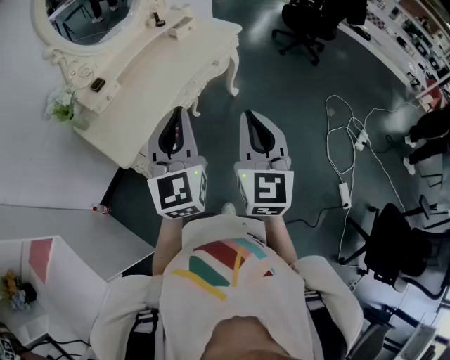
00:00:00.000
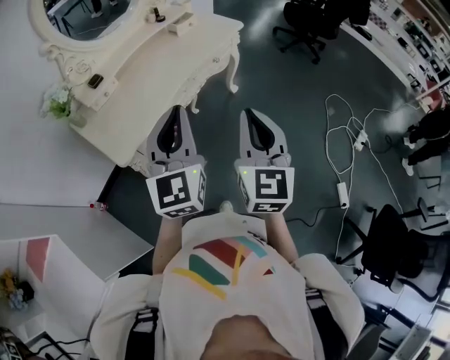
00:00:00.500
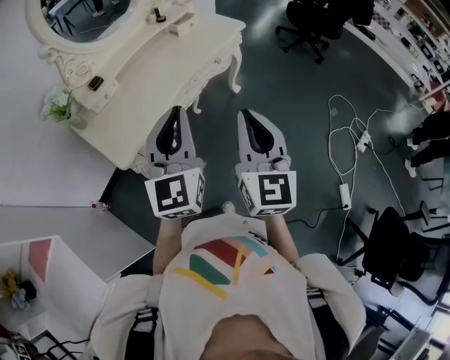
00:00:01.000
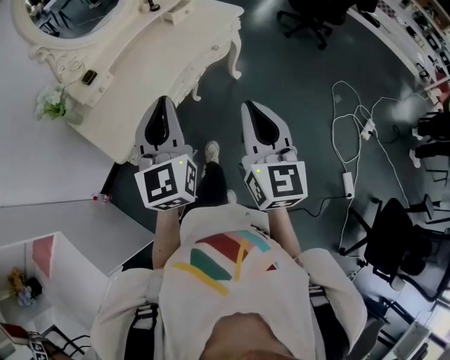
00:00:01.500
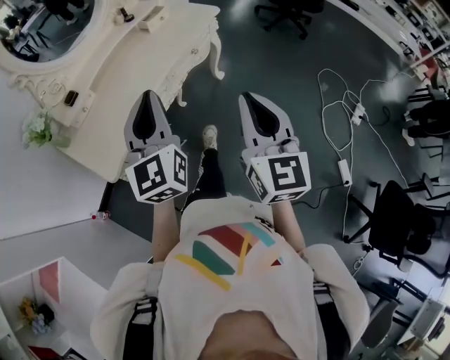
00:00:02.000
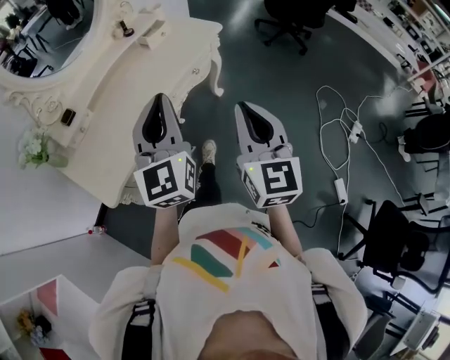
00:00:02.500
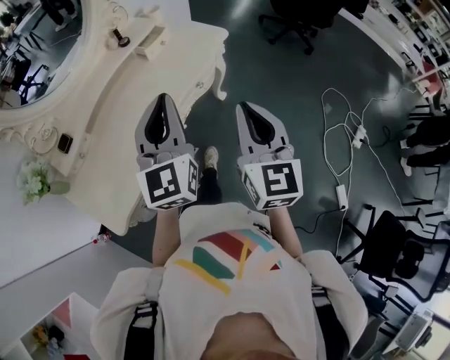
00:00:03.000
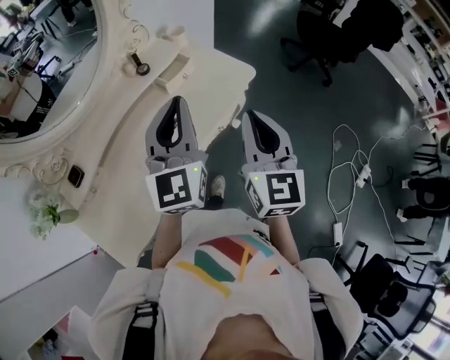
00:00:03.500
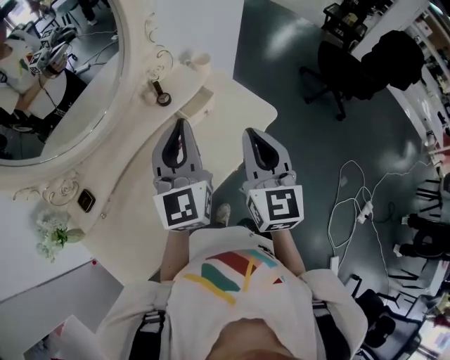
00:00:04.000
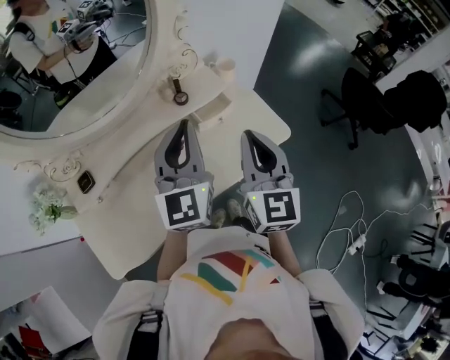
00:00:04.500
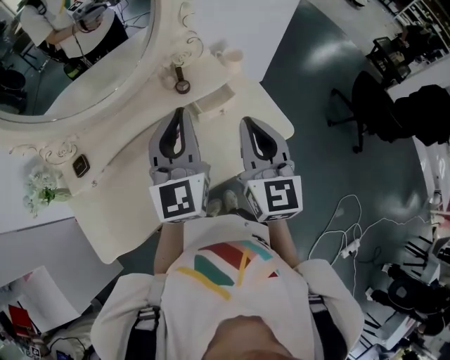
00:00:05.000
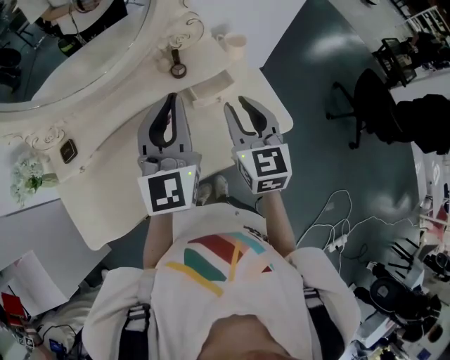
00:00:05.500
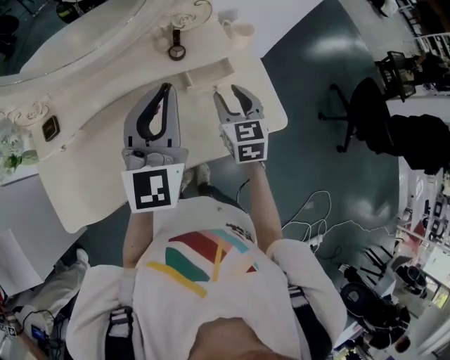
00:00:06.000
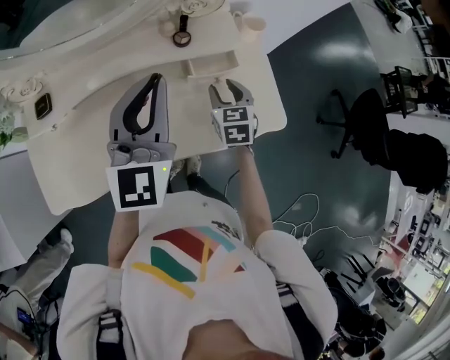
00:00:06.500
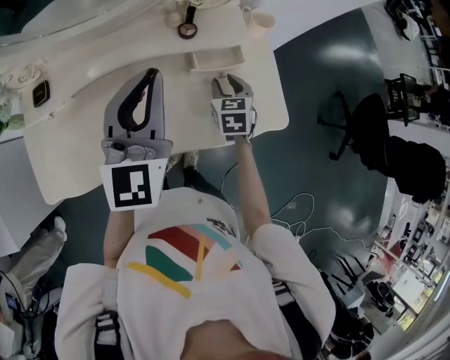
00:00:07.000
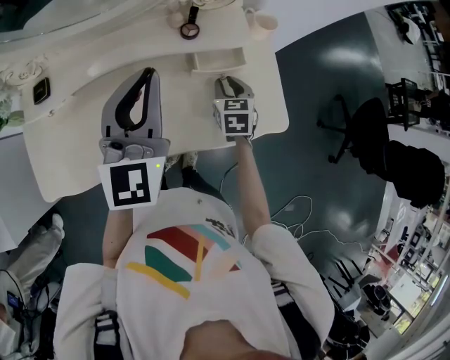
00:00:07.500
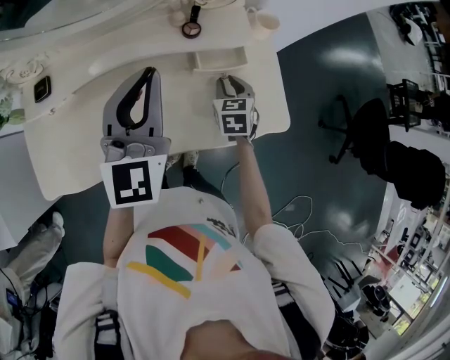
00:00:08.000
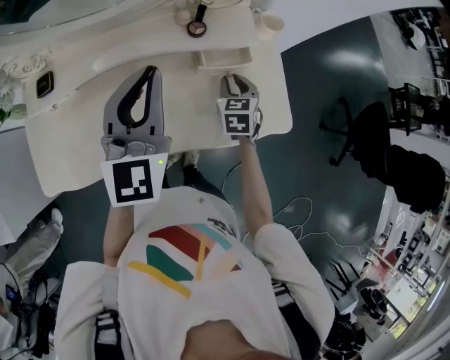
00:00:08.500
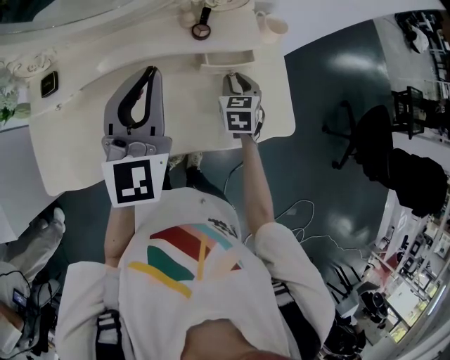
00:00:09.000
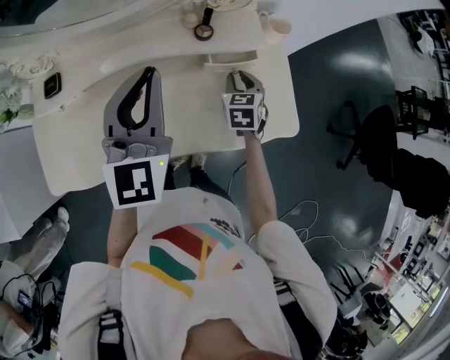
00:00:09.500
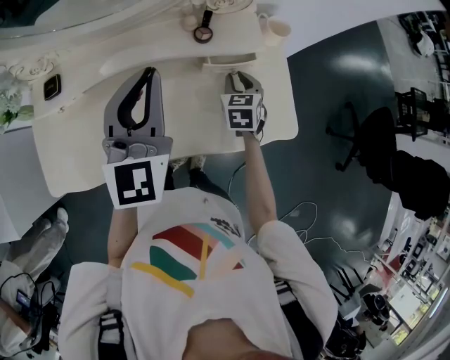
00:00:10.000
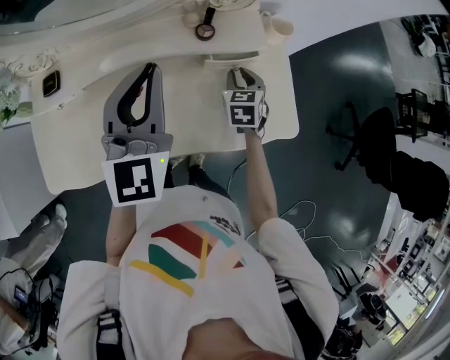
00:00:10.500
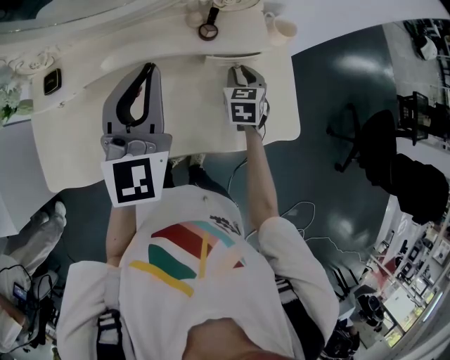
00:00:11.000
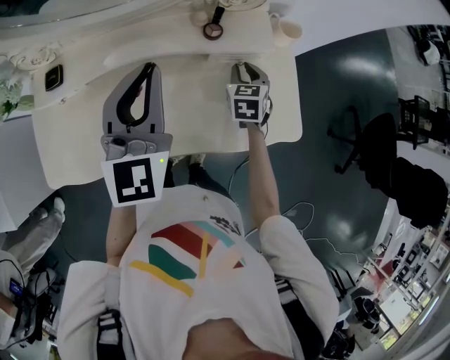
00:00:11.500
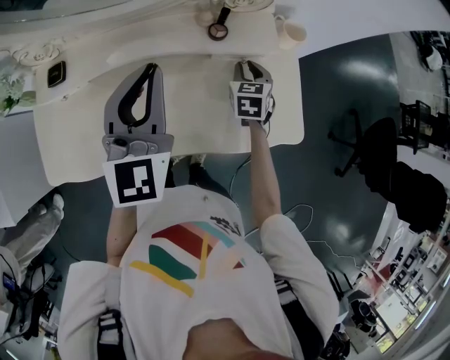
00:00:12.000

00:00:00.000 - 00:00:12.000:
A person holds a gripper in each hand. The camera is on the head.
00:00:00.000 - 00:00:02.000: The left gripper heads forward, covering some 10 cm. The right gripper goes approximately 5 cm forward.
00:00:02.000 - 00:00:04.000: Both grippers are carried forward, about 50 cm.
00:00:04.000 - 00:00:06.000: The left gripper heads forward, covering approximately 5 cm, while the right gripper goes roughly 25 cm downward and forward, changes its angle by roughly 40 degrees, and opens.
00:00:06.000 - 00:00:08.000: The right gripper heads downward, covering roughly 10 cm.
00:00:08.000 - 00:00:10.000: The grippers stay close to where they were, moving slightly.
00:00:10.000 - 00:00:12.000: The grippers stay close to where they were, moving slightly.

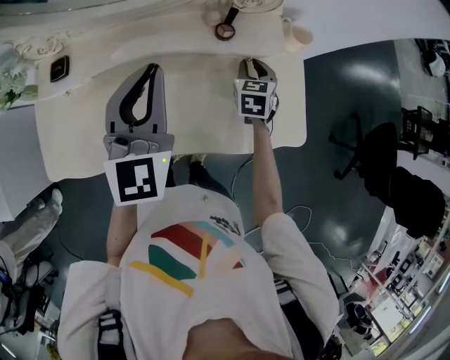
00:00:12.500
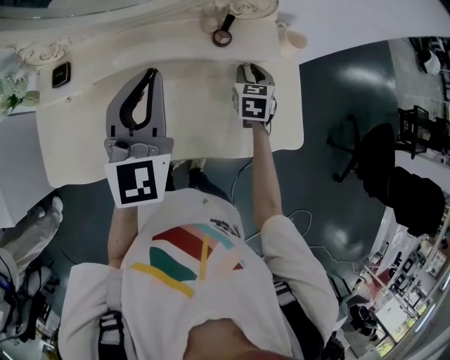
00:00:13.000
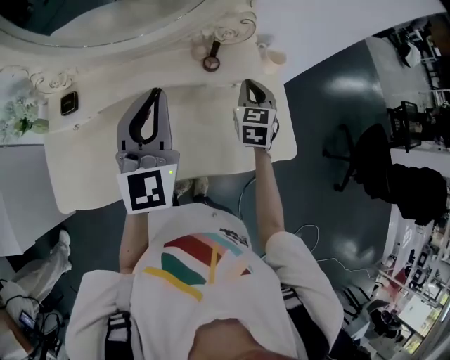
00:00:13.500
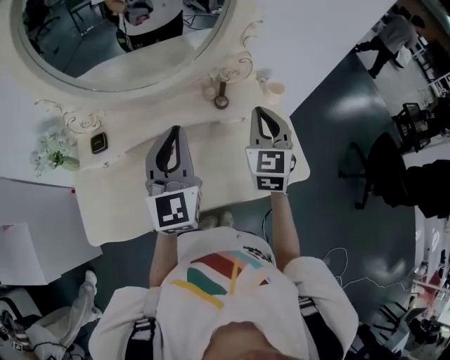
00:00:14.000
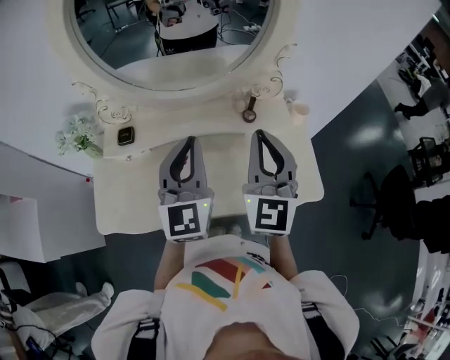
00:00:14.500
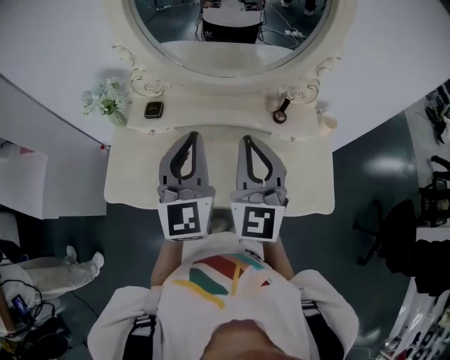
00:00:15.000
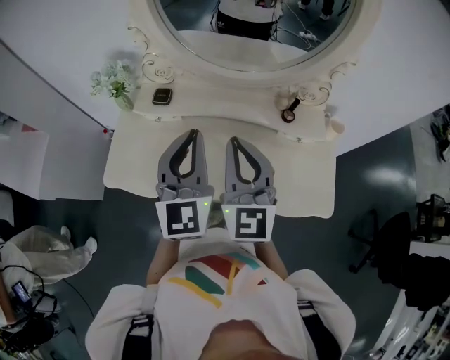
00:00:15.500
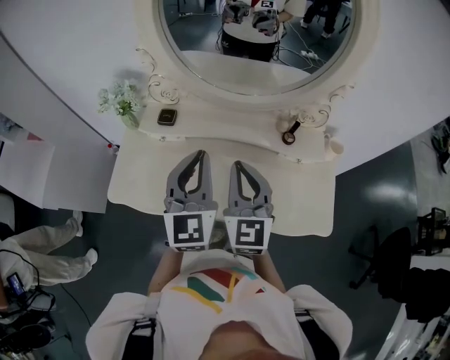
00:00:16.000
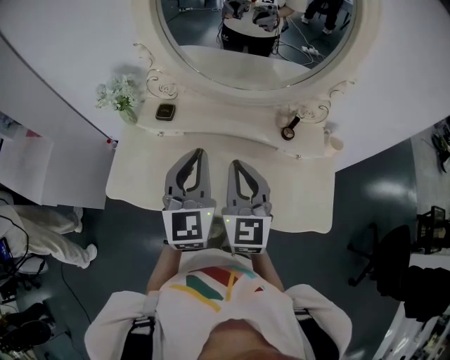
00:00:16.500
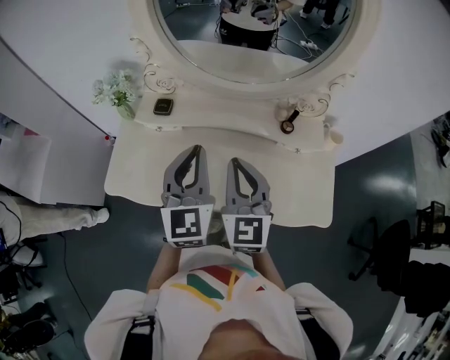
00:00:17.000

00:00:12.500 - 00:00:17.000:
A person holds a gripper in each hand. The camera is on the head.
00:00:12.500 - 00:00:14.500: The left gripper heads upward and backward, covering roughly 10 cm. Meanwhile the right gripper is displaced upward and backward by roughly 40 cm, and tips its fingers upward by about 40 degrees.
00:00:14.500 - 00:00:17.000: The right gripper goes some 15 cm to the left and downward, and swivels approximately 20 degrees. The left gripper moves to the left, some 10 cm.

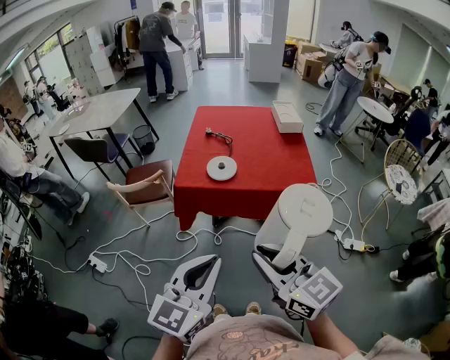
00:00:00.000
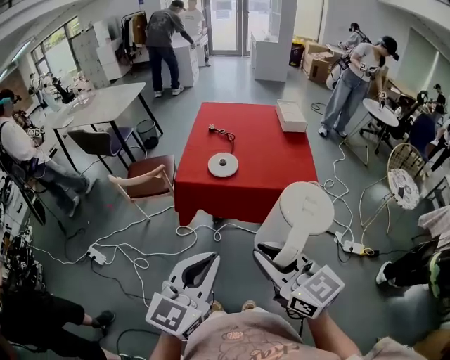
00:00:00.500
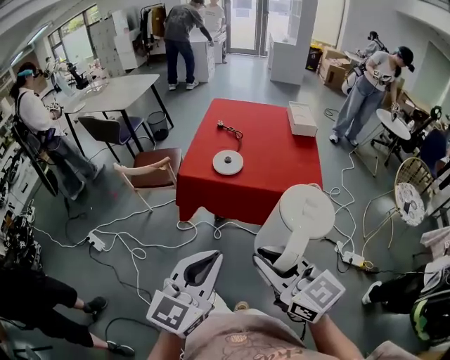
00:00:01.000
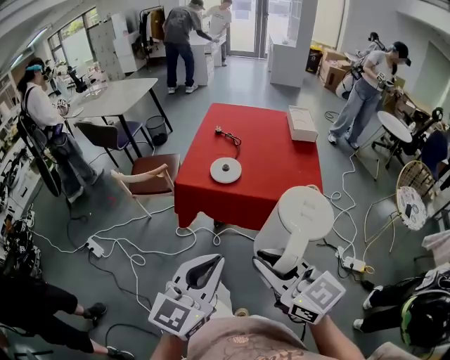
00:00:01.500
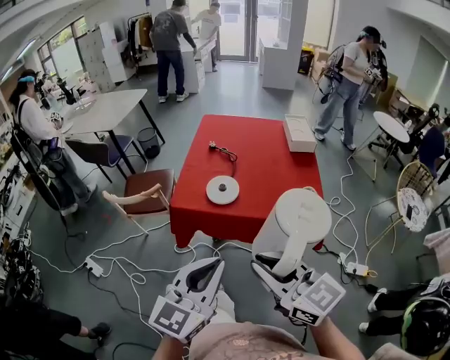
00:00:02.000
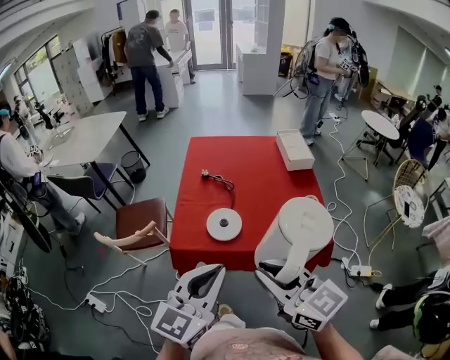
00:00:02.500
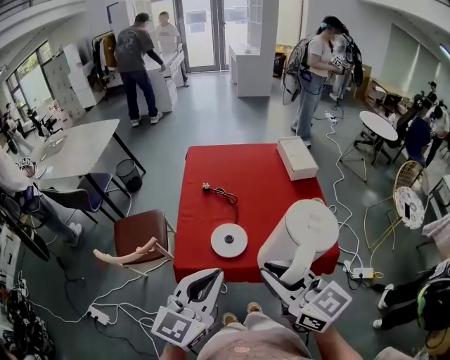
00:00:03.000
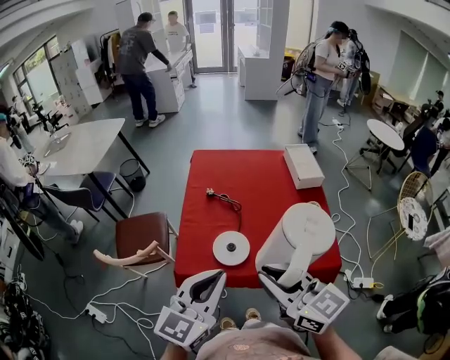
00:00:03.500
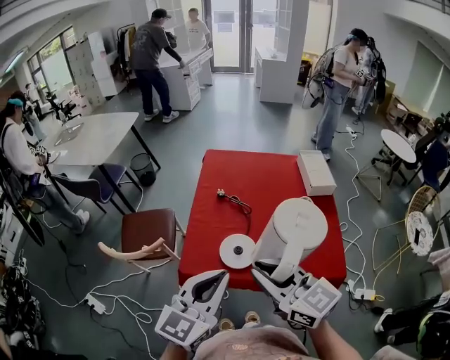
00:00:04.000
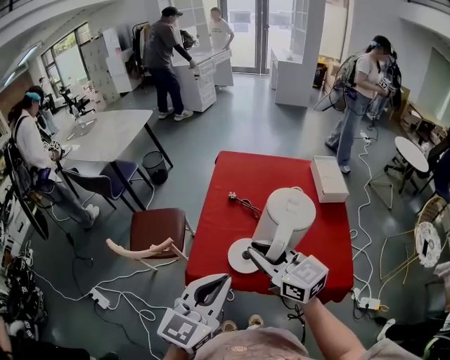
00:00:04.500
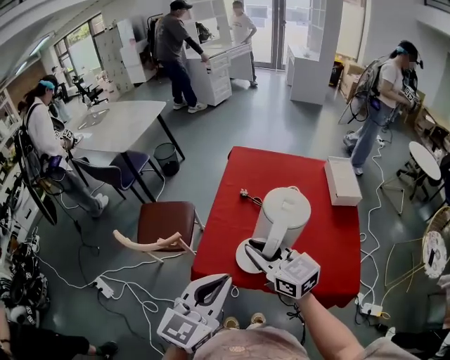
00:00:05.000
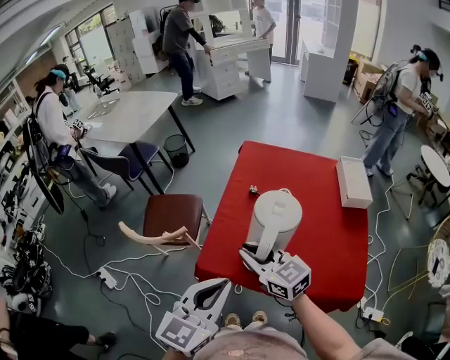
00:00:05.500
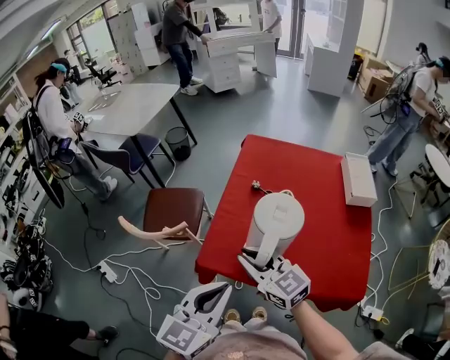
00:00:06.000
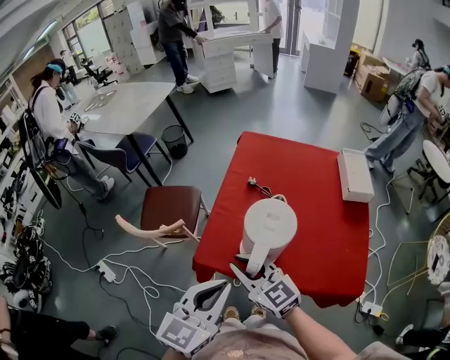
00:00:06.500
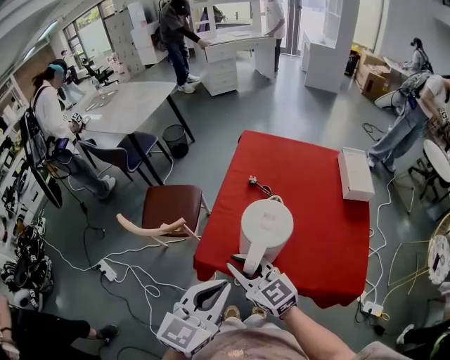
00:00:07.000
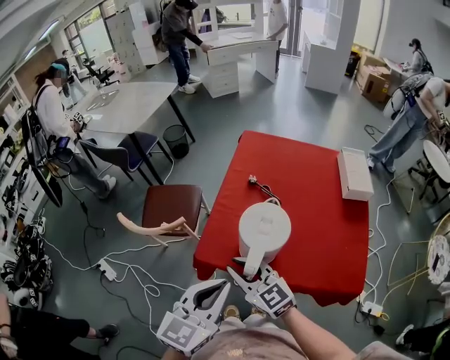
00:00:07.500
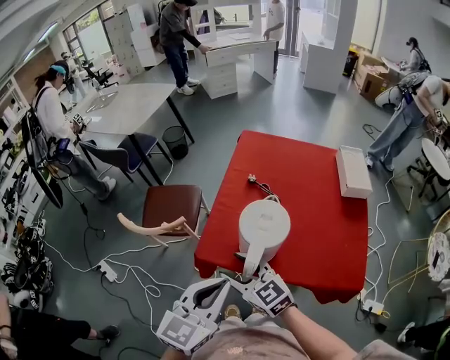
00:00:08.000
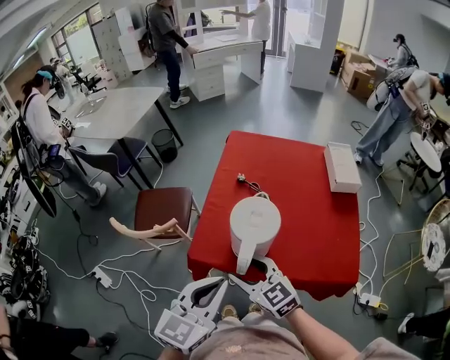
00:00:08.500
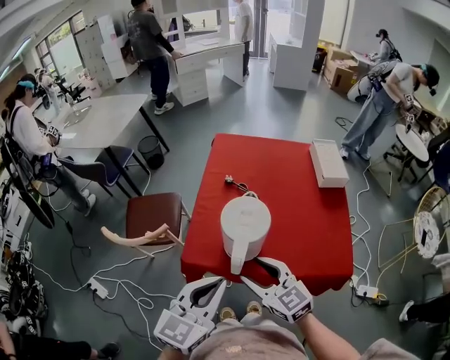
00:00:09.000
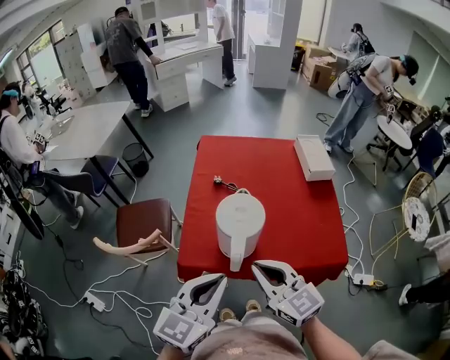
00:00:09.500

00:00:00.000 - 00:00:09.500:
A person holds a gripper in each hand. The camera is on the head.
00:00:00.000 - 00:00:02.000: Both grippers move forward, approximately 10 cm.
00:00:02.000 - 00:00:04.000: Both grippers move forward, approximately 25 cm.
00:00:04.000 - 00:00:05.500: The left gripper moves approximately 5 cm; the right gripper moves forward, downward and to the left, about 20 cm.
00:00:05.500 - 00:00:07.500: The right gripper travels backward by roughly 5 cm.
00:00:07.500 - 00:00:09.500: The right gripper is displaced to the right, upward and backward by roughly 10 cm, swivels some 20 degrees, and opens, then closes again.

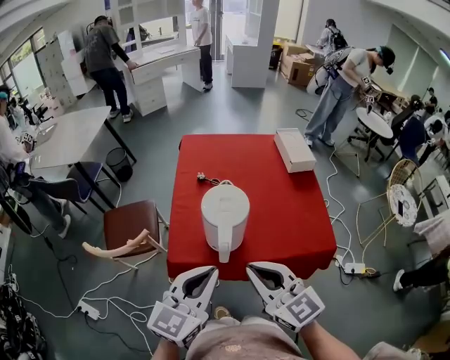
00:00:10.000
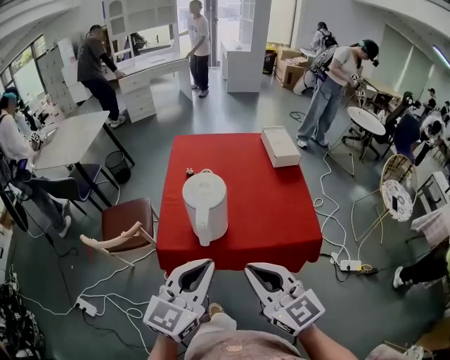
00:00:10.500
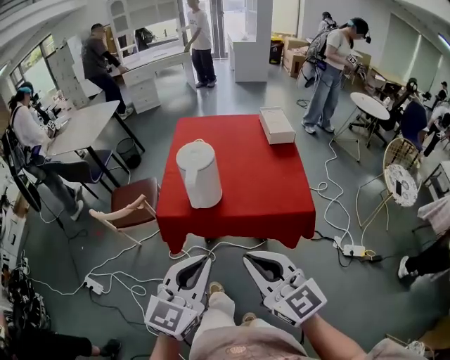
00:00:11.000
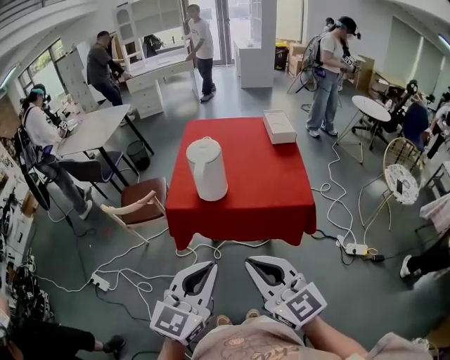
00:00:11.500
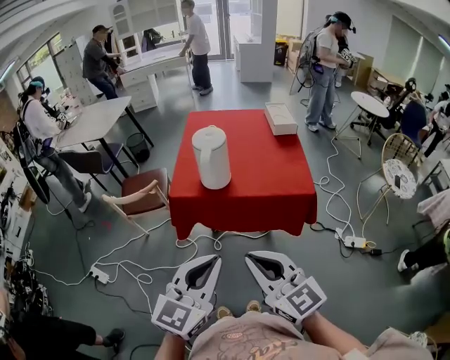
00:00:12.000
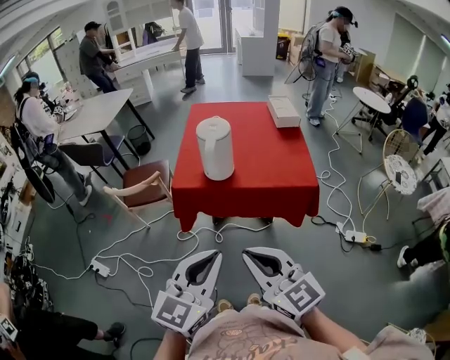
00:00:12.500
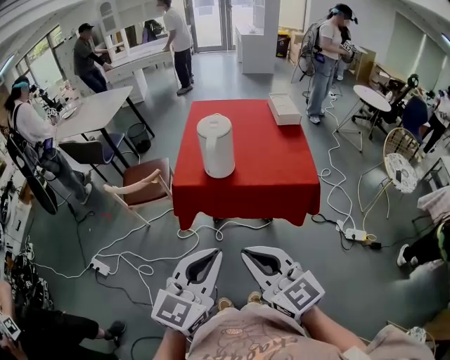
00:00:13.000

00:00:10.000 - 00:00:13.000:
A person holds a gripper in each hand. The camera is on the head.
00:00:10.000 - 00:00:11.500: Both grippers move backward, approximately 25 cm.
00:00:11.500 - 00:00:13.000: The right gripper is displaced to the left by some 5 cm.
